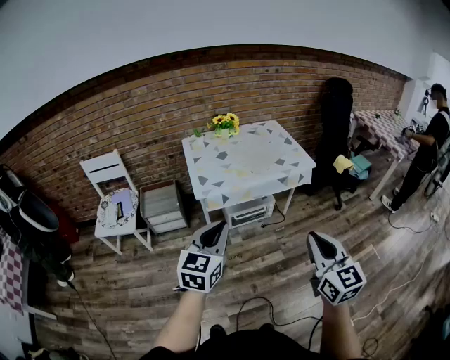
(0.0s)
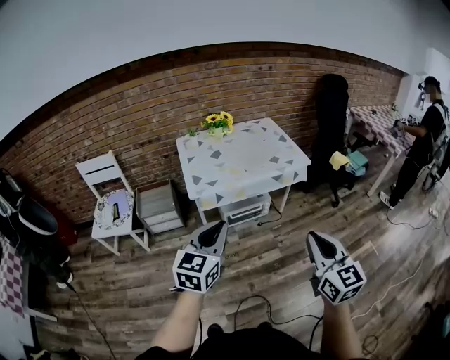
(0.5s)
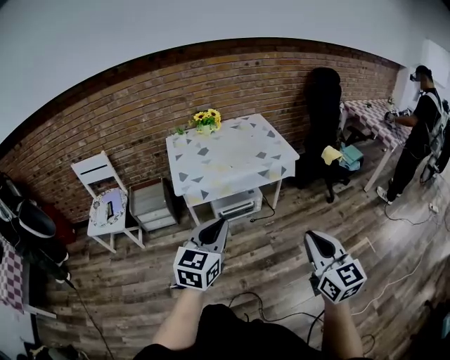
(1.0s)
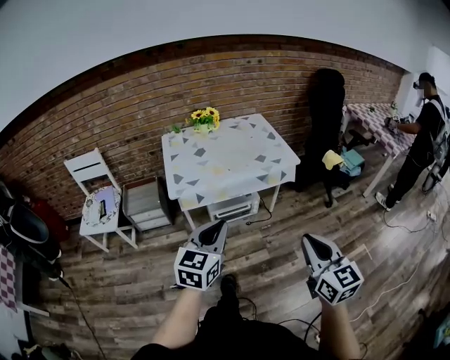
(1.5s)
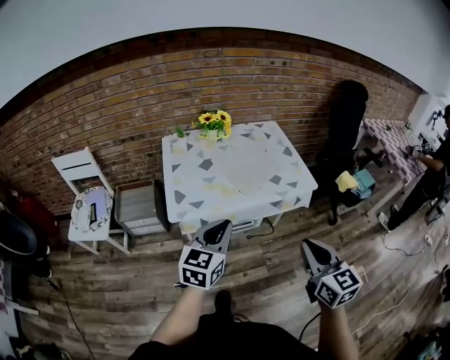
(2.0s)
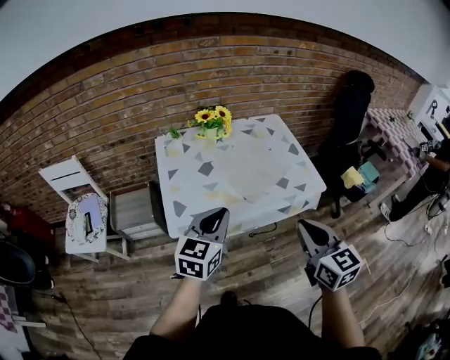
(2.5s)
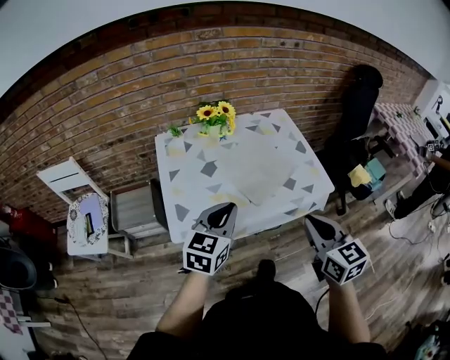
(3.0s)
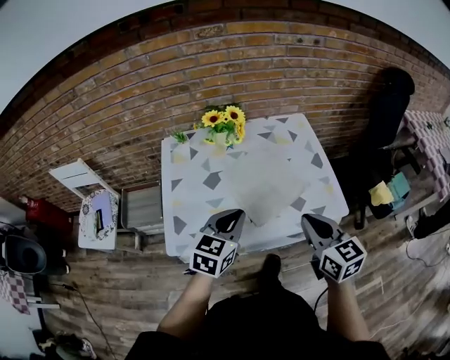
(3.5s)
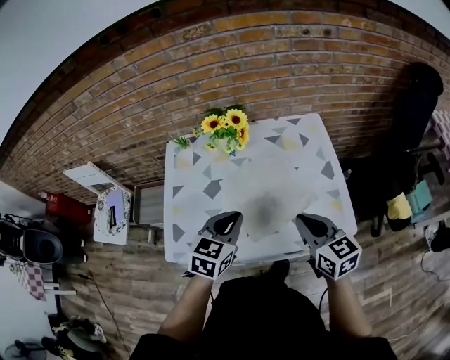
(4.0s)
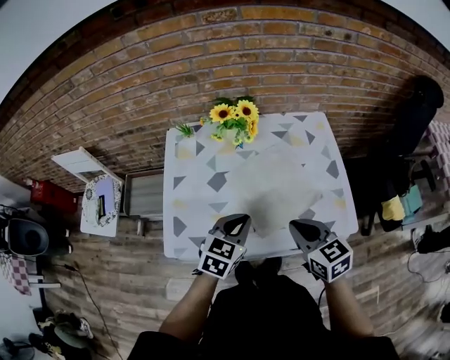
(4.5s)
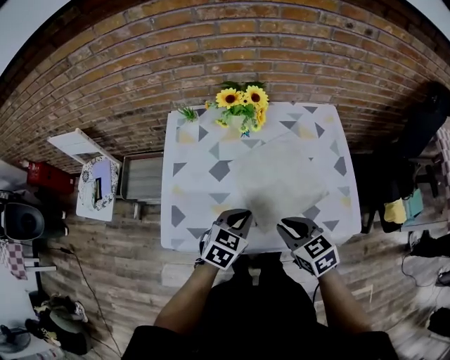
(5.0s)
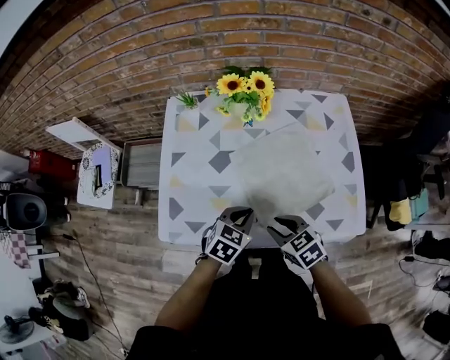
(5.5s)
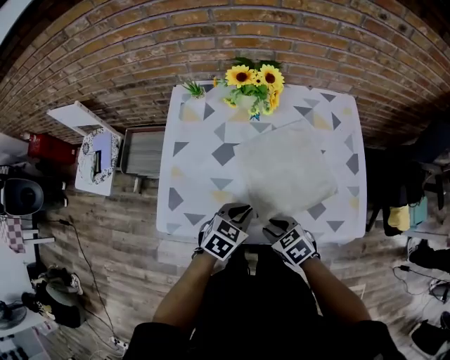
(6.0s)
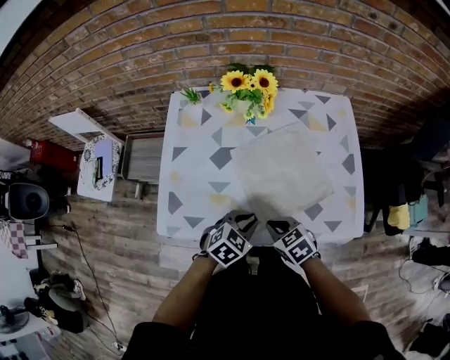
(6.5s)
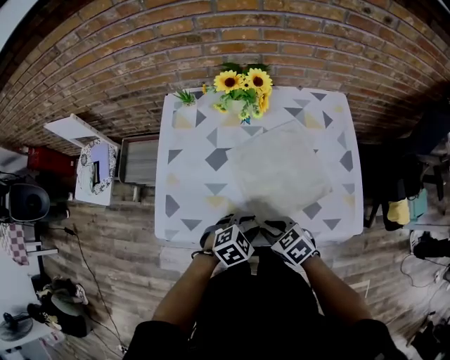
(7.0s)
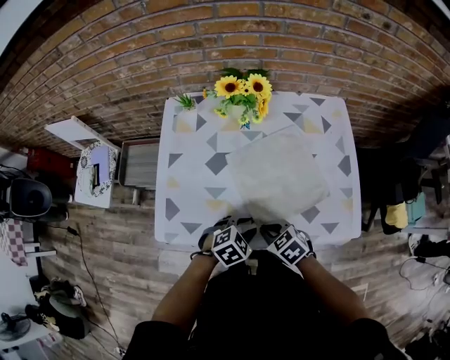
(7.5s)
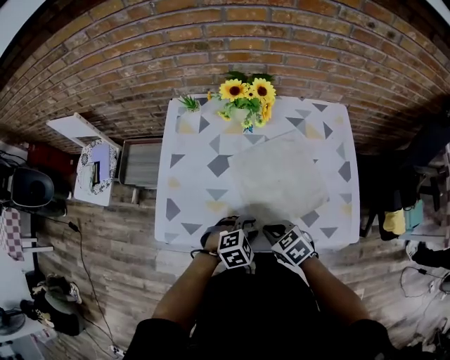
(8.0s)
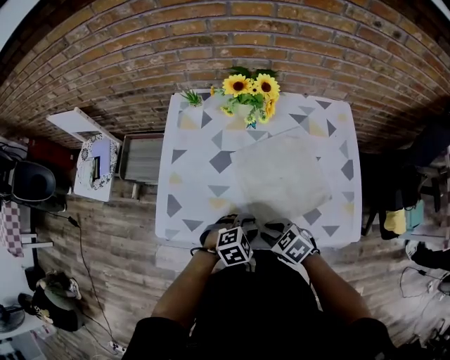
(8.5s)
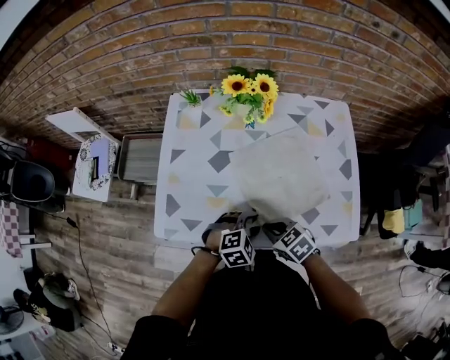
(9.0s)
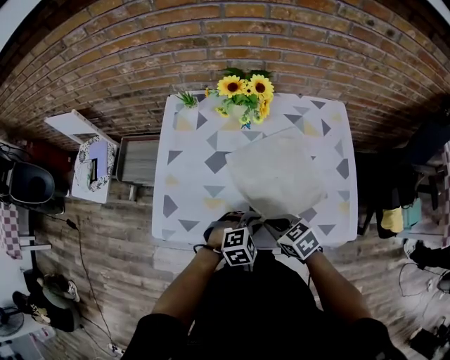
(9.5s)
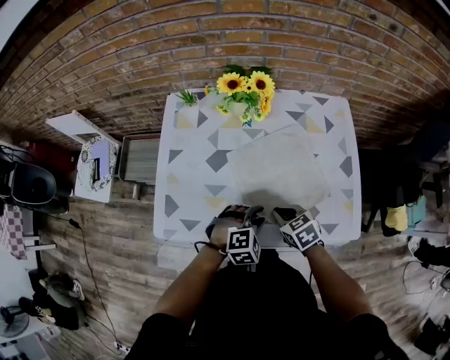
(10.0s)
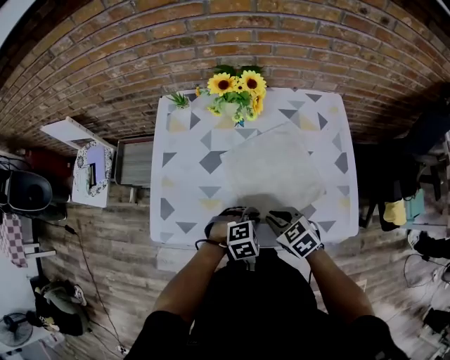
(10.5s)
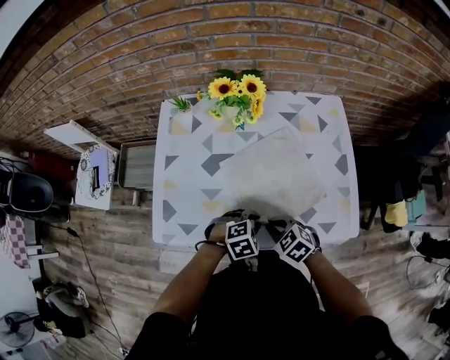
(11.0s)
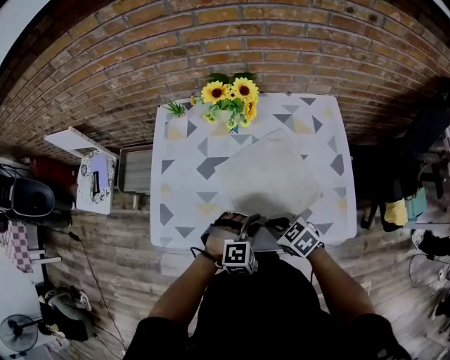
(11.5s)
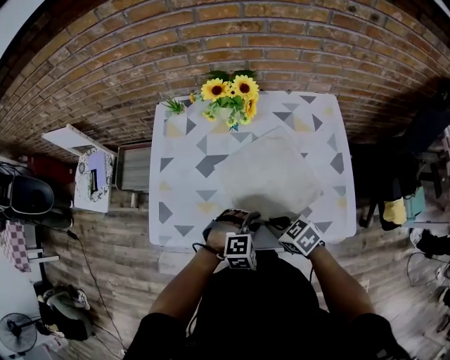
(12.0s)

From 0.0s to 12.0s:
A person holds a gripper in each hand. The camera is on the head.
From 0.0s to 2.0s: The grippers both shift forward by about 20 cm.
From 2.0s to 4.0s: The two grippers go approximately 35 cm forward. The left gripper swivels approximately 20 degrees, while the right gripper changes its angle by roughly 20 degrees.
From 4.0s to 6.0s: The left gripper shifts roughly 15 cm downward. The right gripper goes about 25 cm downward and to the left, angles its fingers downward, by about 30 degrees, and opens.
From 6.0s to 8.0s: The left gripper changes place by approximately 5 cm, rotates approximately 30 degrees, and opens its fingers. Meanwhile the right gripper closes.
From 8.0s to 10.0s: The right gripper changes place by roughly 5 cm, and opens and closes again.

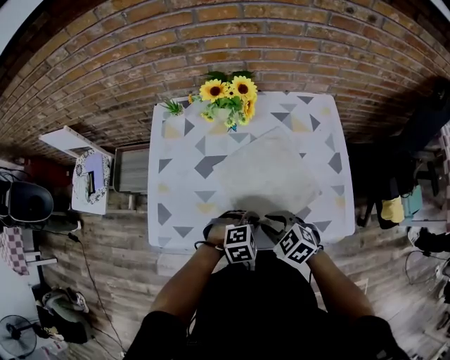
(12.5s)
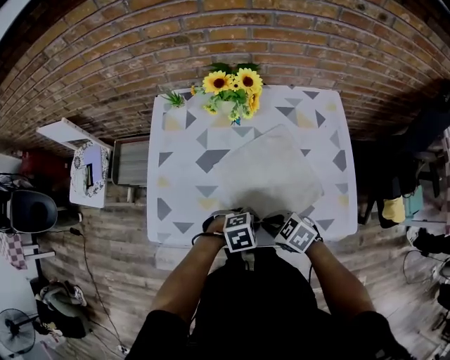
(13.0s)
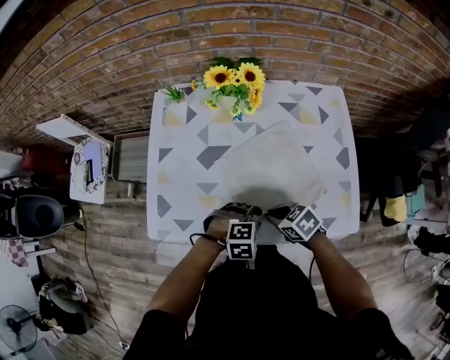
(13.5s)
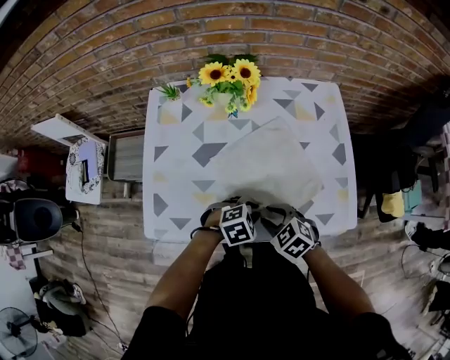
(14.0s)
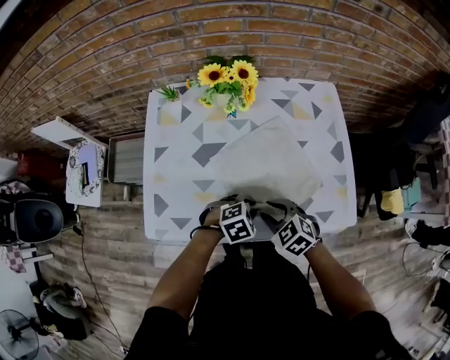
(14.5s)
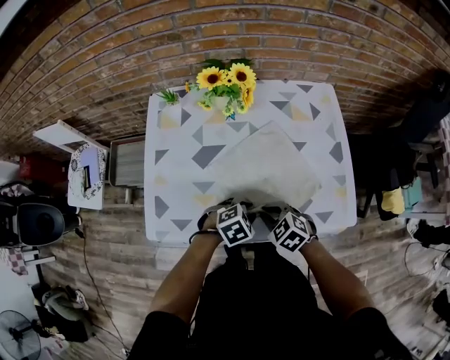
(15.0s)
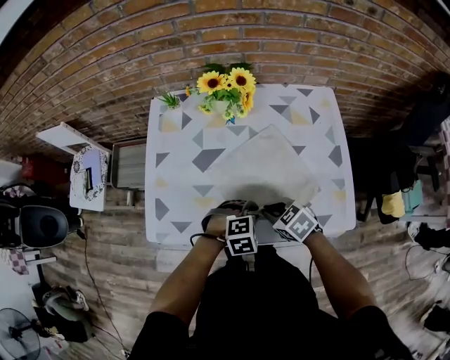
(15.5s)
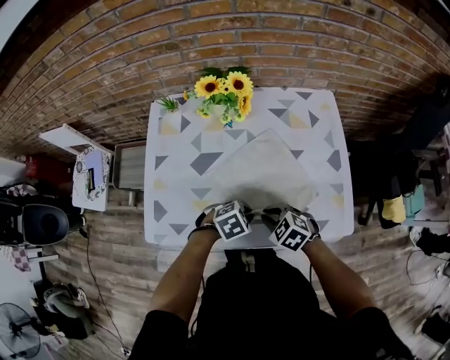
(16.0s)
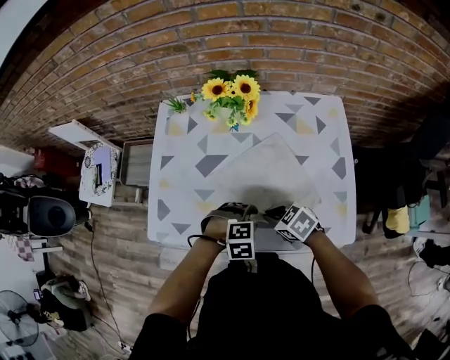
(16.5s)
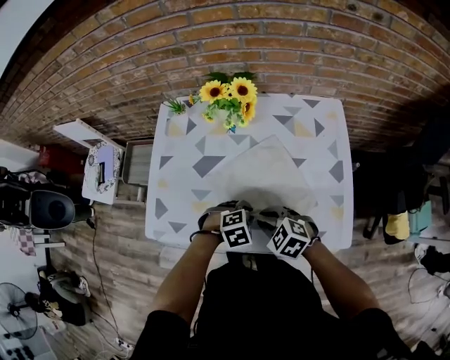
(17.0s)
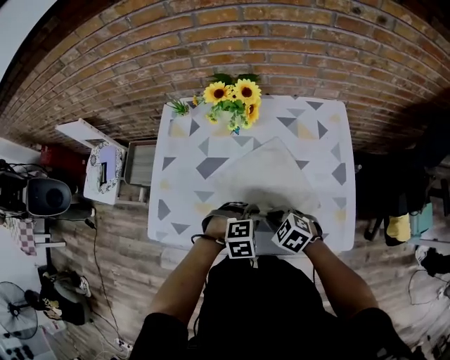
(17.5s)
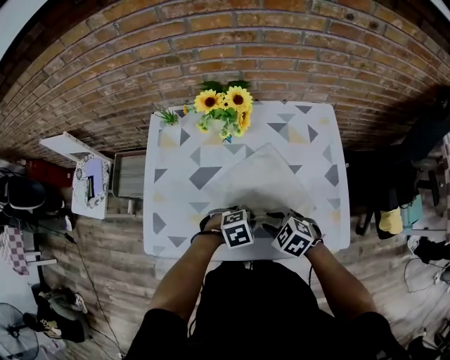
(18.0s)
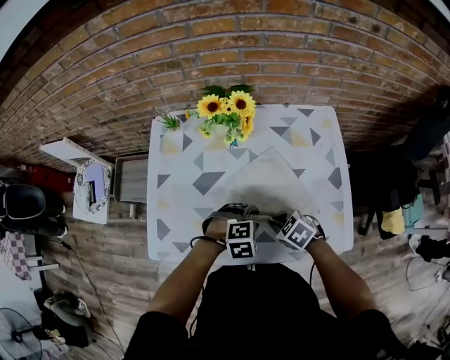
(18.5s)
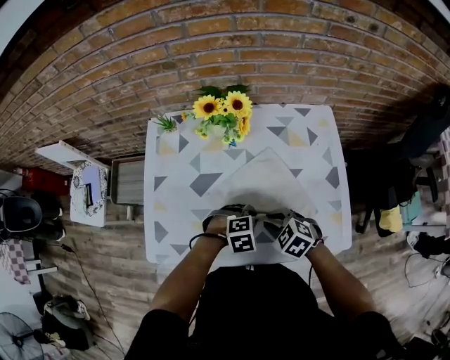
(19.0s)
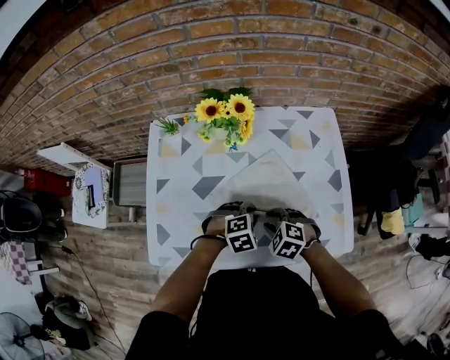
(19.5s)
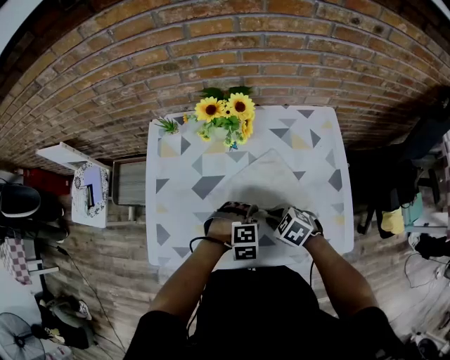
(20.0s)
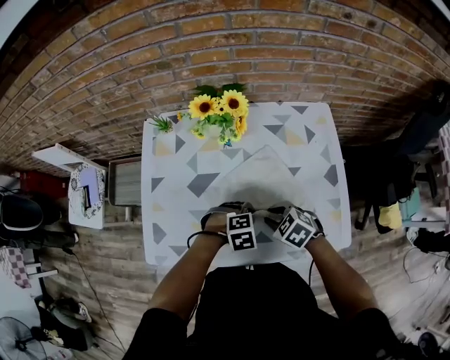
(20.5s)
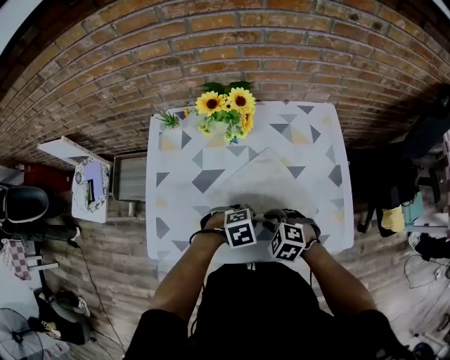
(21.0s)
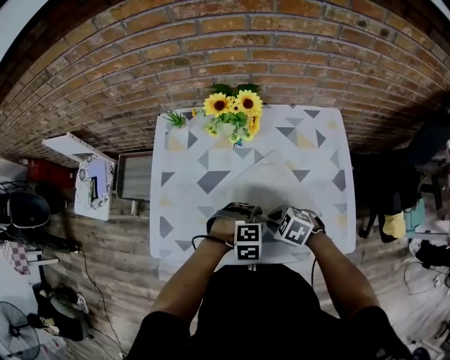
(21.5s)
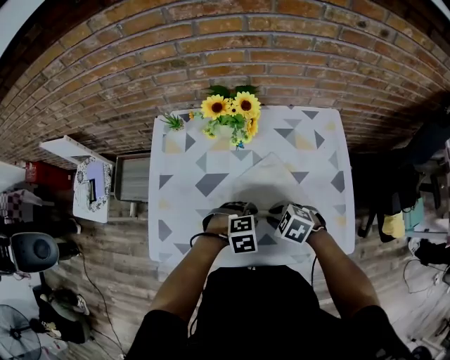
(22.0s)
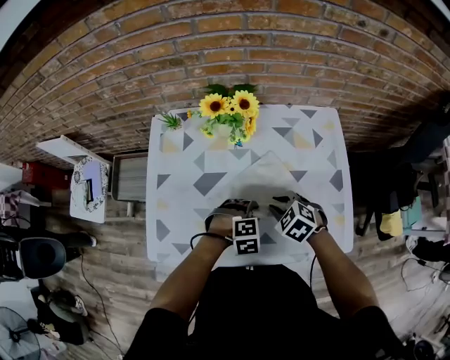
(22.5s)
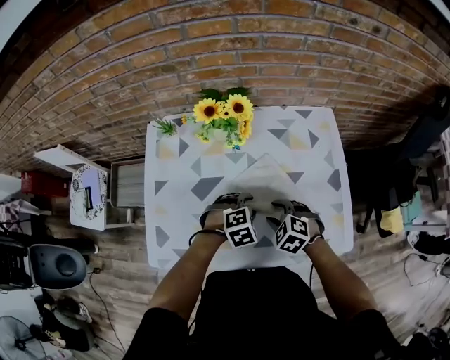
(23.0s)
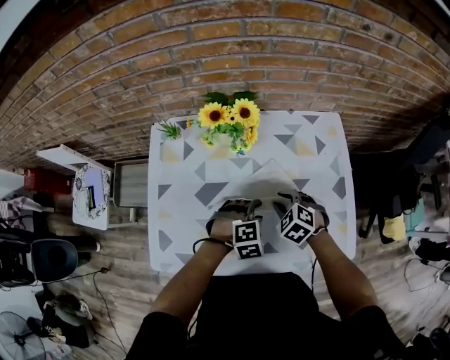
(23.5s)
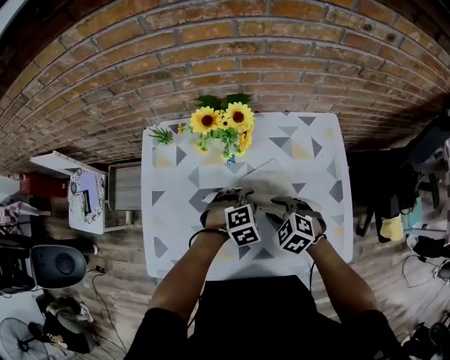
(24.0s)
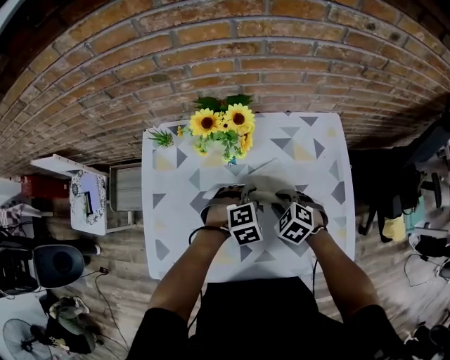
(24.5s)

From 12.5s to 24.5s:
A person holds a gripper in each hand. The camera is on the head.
From 14.5s to 16.5s: The right gripper changes its angle by approximately 20 degrees, and closes.
From 16.5s to 18.5s: The right gripper opens, then closes once more. Meanwhile the left gripper ends up roughly 5 cm from where it was, and closes, then opens again.
From 18.5s to 20.5s: The left gripper closes up.
From 20.5s to 22.5s: The left gripper opens up.
From 22.5s to 24.5s: The right gripper heads forward, covering approximately 5 cm. Meanwhile the left gripper is displaced forward by roughly 10 cm.

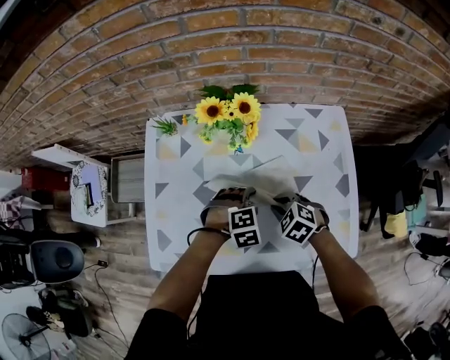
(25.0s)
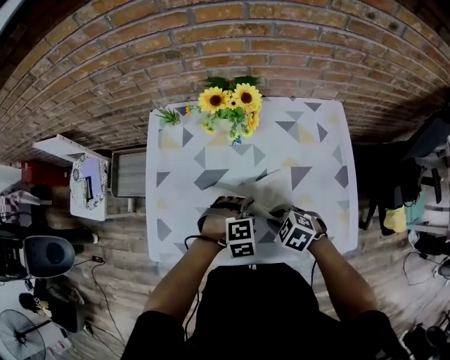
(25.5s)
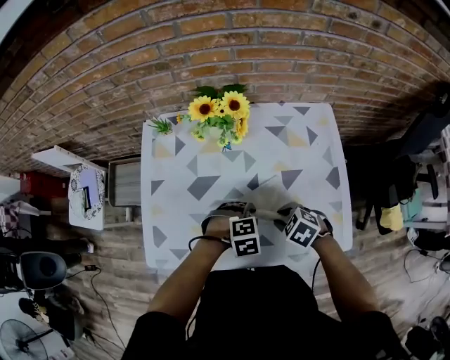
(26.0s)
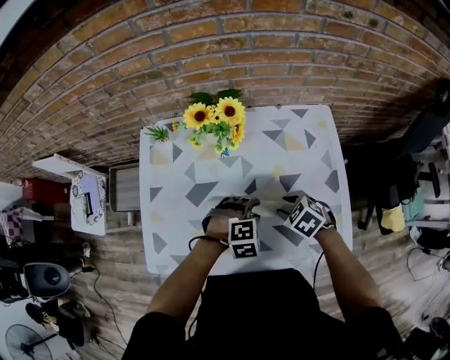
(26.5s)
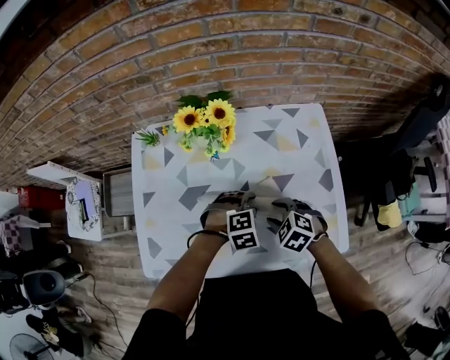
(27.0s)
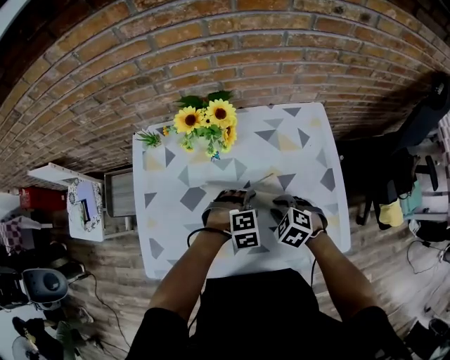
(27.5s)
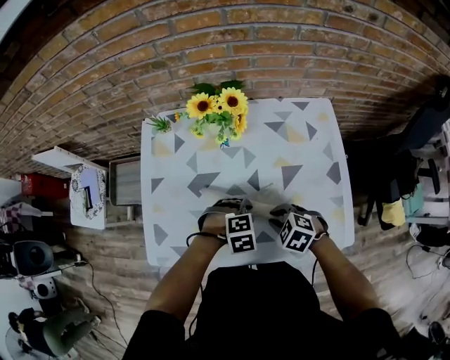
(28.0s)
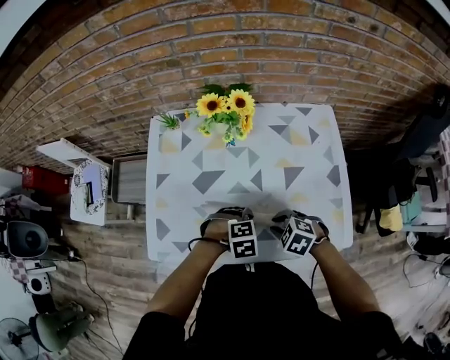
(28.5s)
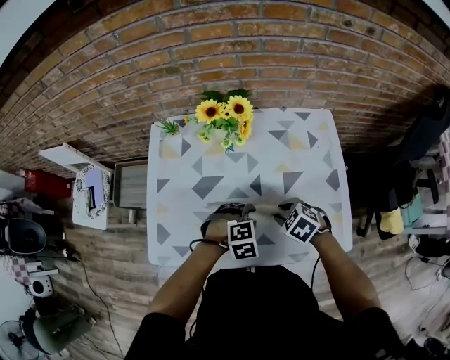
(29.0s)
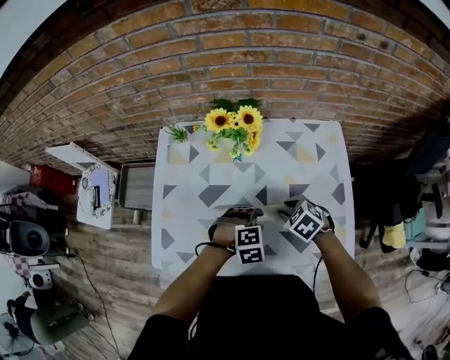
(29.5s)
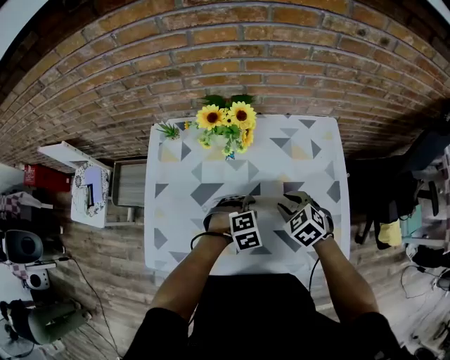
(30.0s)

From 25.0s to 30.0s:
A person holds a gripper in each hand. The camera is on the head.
From 25.0s to 27.5s: The right gripper opens and closes again, while the left gripper closes, then opens again.
